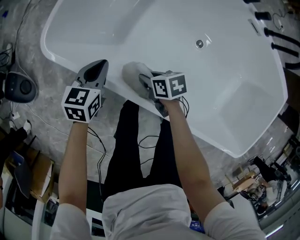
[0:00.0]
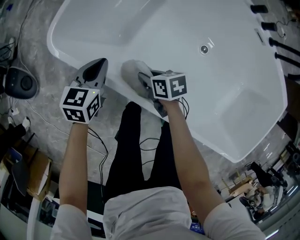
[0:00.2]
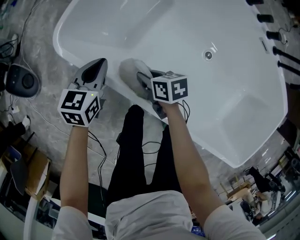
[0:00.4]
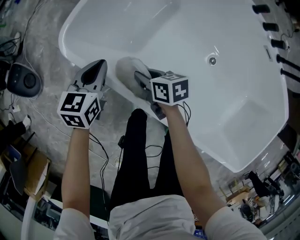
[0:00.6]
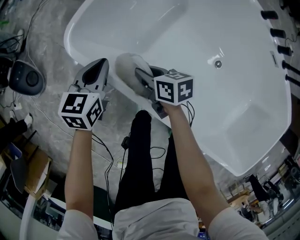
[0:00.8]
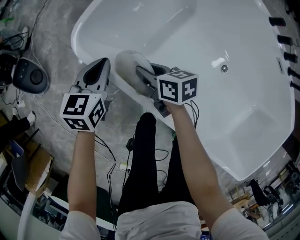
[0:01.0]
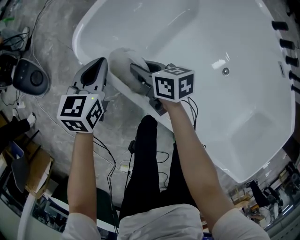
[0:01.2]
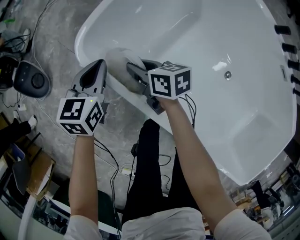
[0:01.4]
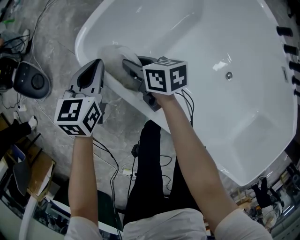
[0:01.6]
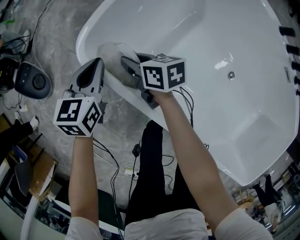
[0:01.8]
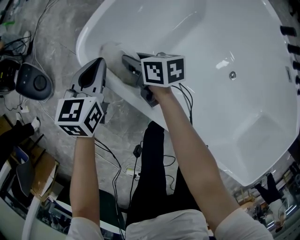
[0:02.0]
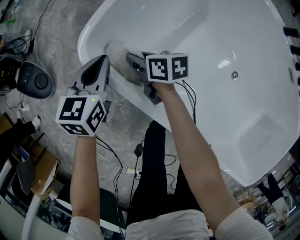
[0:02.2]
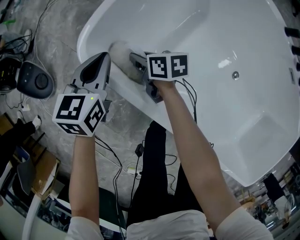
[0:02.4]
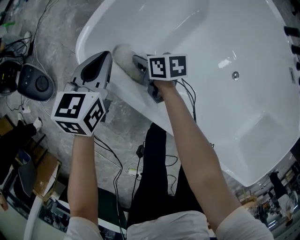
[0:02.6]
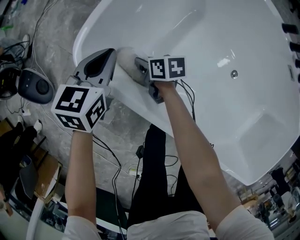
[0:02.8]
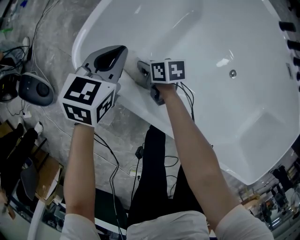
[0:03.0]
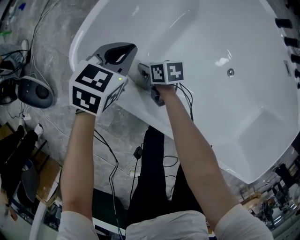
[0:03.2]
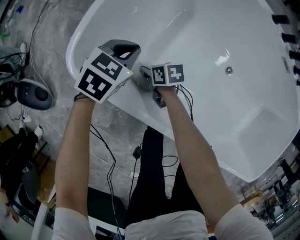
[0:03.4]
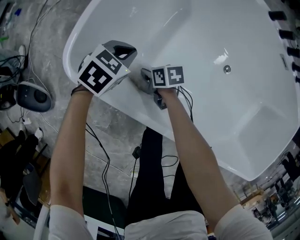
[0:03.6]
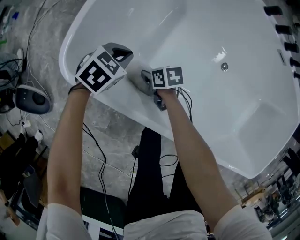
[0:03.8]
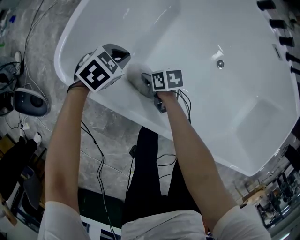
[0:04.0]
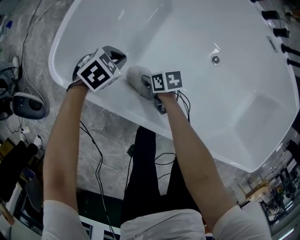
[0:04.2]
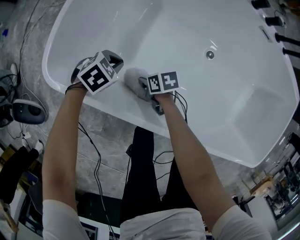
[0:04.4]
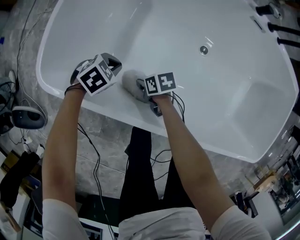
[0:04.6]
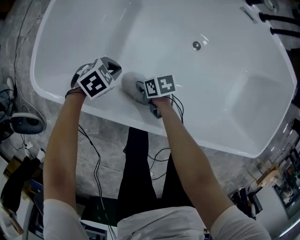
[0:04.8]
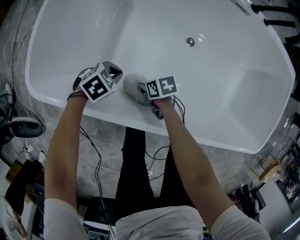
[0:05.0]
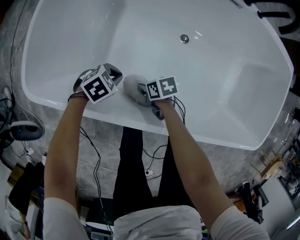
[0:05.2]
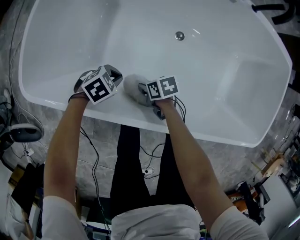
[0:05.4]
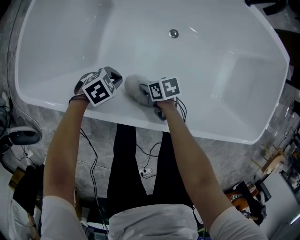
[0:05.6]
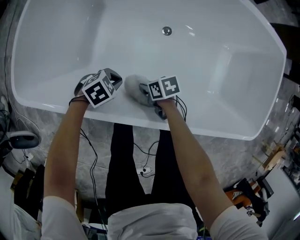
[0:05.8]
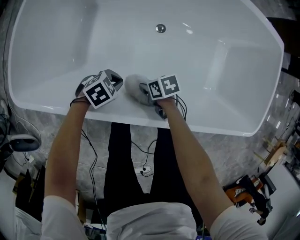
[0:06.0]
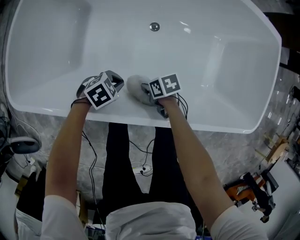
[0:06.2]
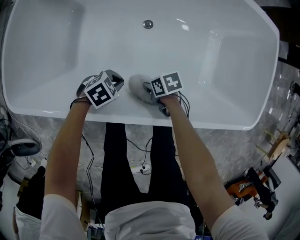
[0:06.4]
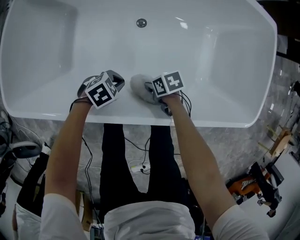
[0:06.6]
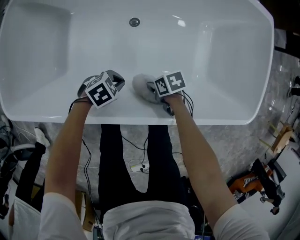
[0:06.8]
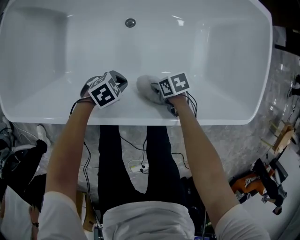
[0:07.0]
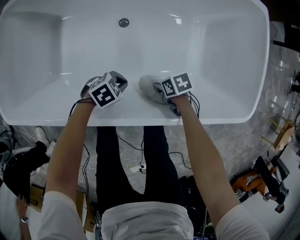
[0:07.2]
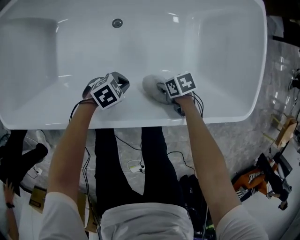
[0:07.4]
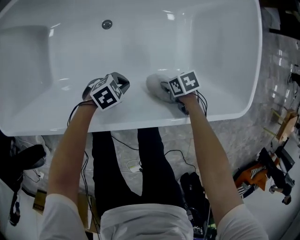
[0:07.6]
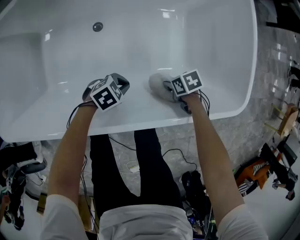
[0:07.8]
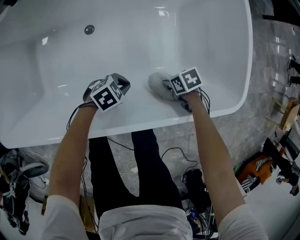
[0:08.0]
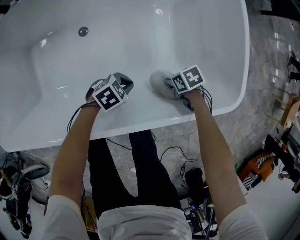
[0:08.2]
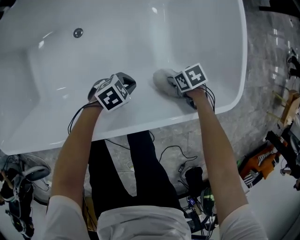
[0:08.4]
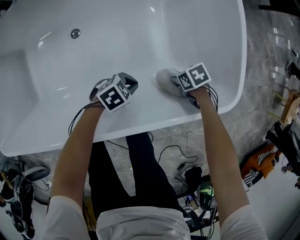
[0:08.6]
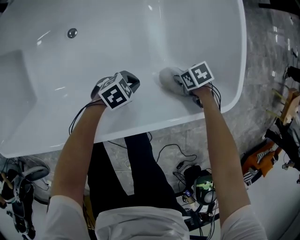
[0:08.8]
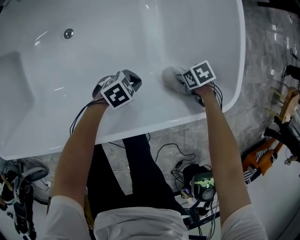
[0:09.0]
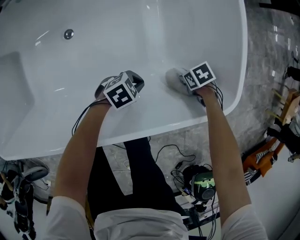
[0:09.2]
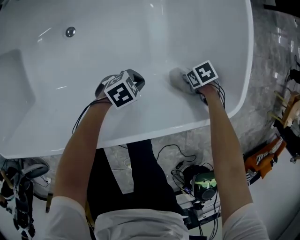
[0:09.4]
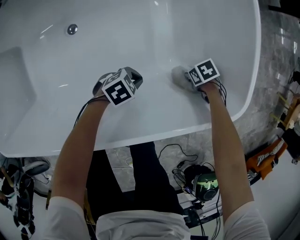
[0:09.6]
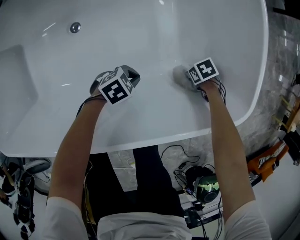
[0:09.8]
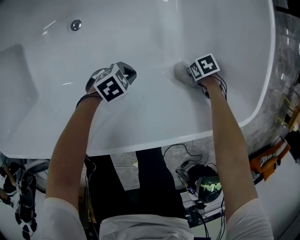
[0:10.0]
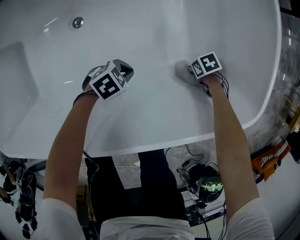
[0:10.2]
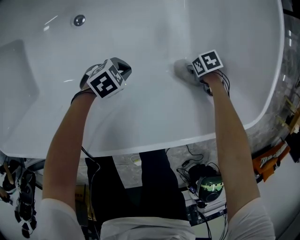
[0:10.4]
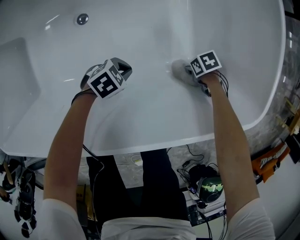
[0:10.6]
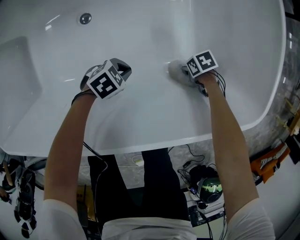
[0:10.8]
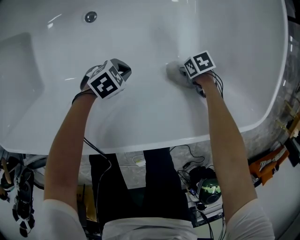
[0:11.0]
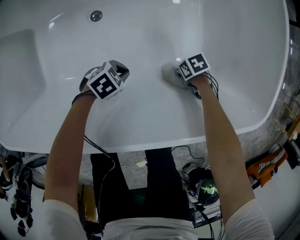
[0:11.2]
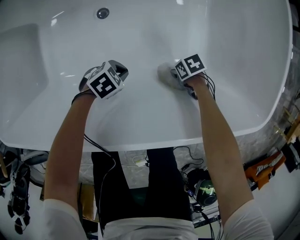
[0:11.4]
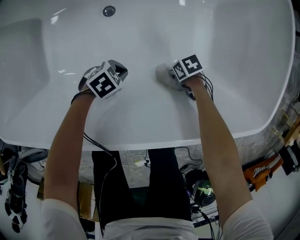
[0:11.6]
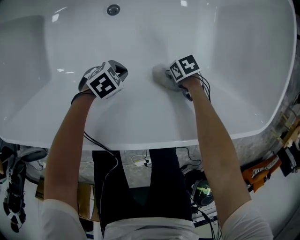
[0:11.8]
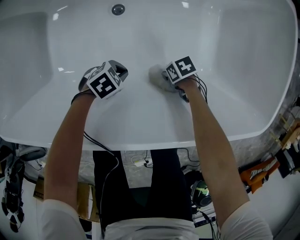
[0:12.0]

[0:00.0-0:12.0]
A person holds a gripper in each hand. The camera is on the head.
0.0 to 1.6 s: The left gripper changes place by approximately 20 cm, and turns by roughly 20 degrees.
1.6 to 3.0 s: The left gripper moves approximately 10 cm, and rotates some 20 degrees.
3.0 to 4.4 s: The left gripper ends up some 20 cm from where it was, and turns by approximately 50 degrees.
4.4 to 6.0 s: The left gripper ends up approximately 30 cm from where it was, and changes its angle by roughly 20 degrees.
6.0 to 7.6 s: The left gripper ends up roughly 30 cm from where it was.
7.6 to 9.0 s: The left gripper moves some 20 cm.
9.0 to 10.4 s: The left gripper shifts by some 15 cm.
10.4 to 12.0 s: The left gripper ends up some 15 cm from where it was.

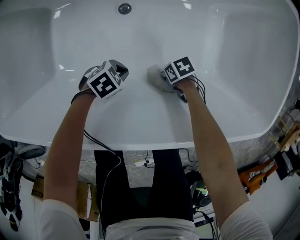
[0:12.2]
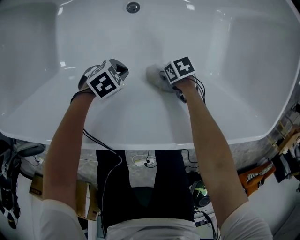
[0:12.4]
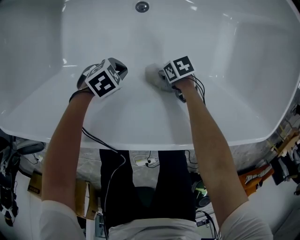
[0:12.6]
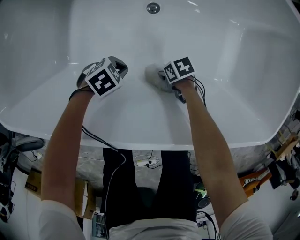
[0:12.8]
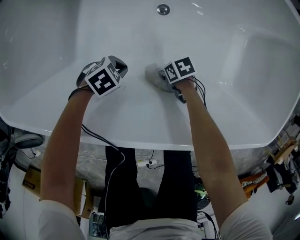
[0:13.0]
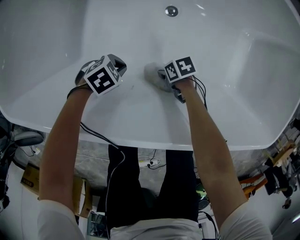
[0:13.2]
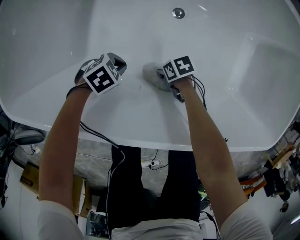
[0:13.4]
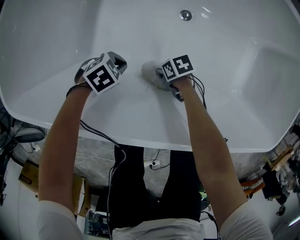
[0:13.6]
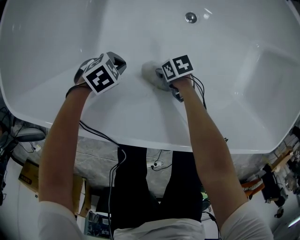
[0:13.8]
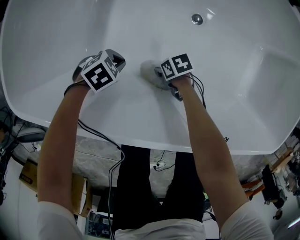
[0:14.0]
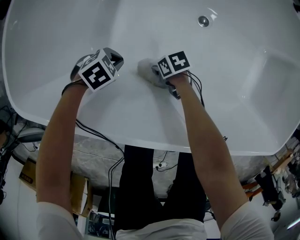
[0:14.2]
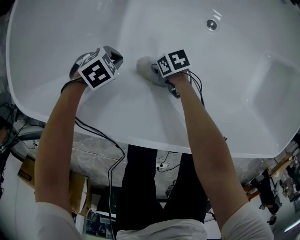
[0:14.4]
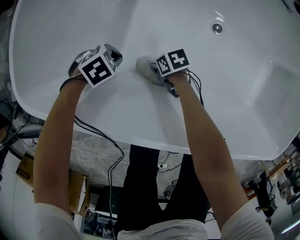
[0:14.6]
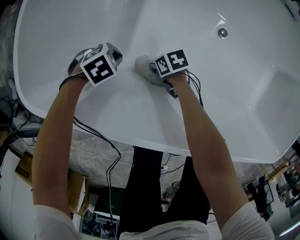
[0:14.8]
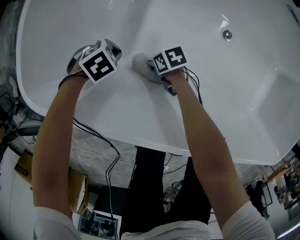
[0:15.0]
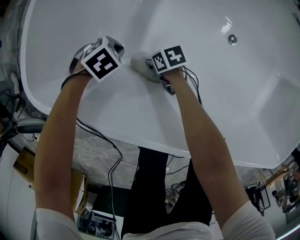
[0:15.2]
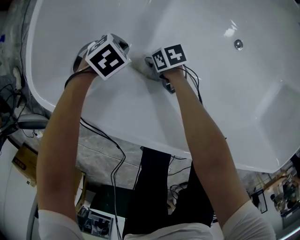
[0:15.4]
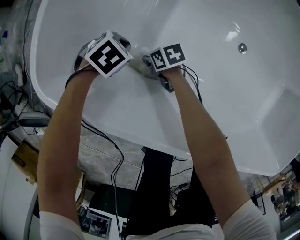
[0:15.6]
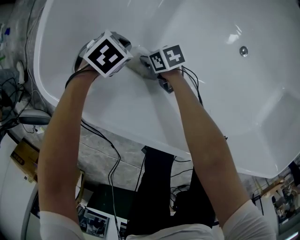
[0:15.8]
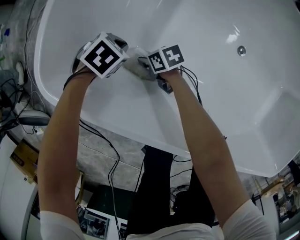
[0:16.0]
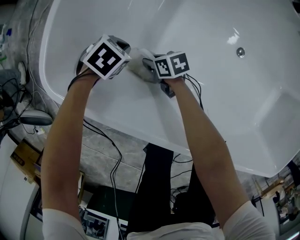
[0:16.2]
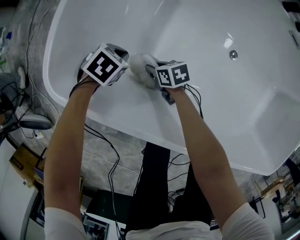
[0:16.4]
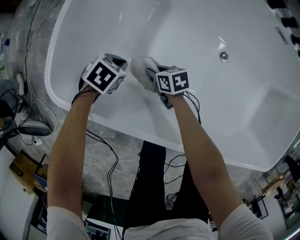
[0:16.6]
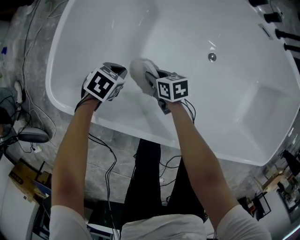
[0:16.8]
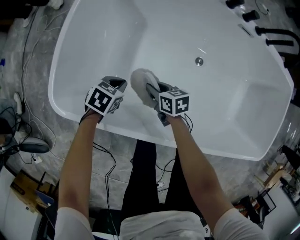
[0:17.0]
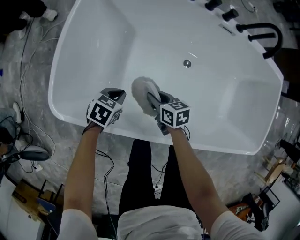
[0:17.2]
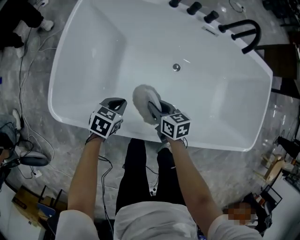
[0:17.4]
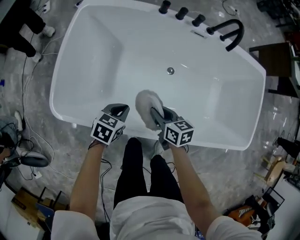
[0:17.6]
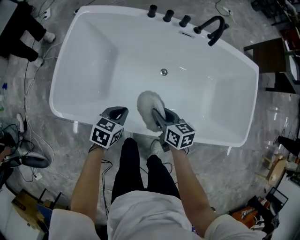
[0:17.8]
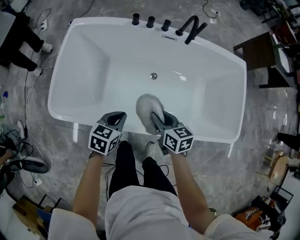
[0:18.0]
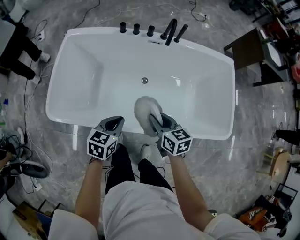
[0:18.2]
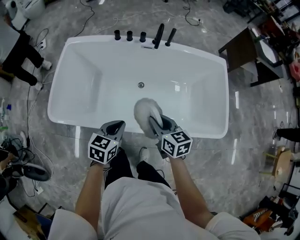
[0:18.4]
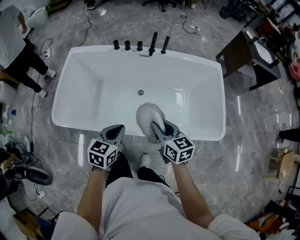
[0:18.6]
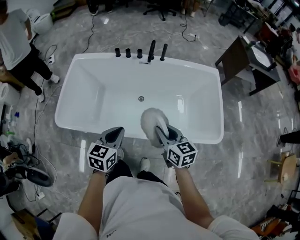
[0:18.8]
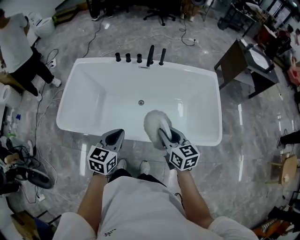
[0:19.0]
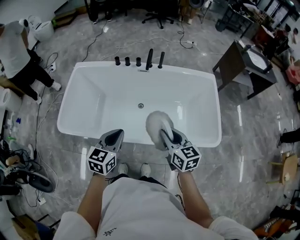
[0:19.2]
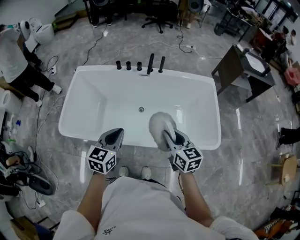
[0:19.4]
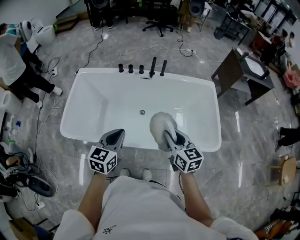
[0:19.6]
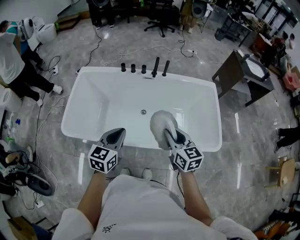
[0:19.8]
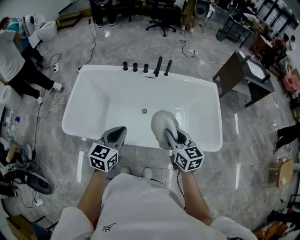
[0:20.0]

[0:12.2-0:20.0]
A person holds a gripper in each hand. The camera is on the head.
12.2 to 13.8 s: The left gripper ends up roughly 25 cm from where it was.
13.8 to 15.4 s: The left gripper shifts by some 25 cm.
15.4 to 16.8 s: The left gripper heads upward, covering some 10 cm, and changes its angle by some 20 degrees.
16.8 to 18.4 s: The left gripper travels upward by approximately 40 cm, and swivels roughly 30 degrees.
18.4 to 20.0 s: The left gripper travels upward by roughly 15 cm.

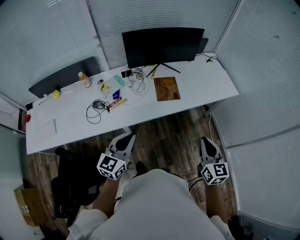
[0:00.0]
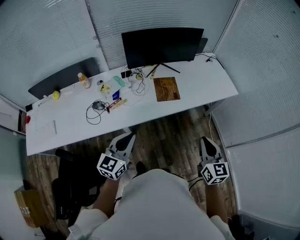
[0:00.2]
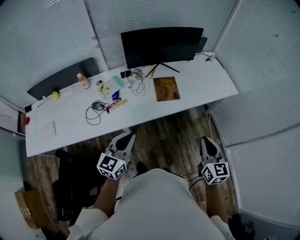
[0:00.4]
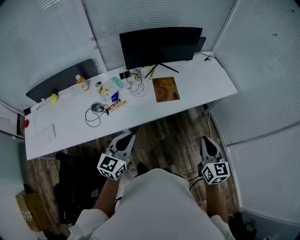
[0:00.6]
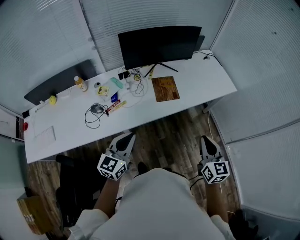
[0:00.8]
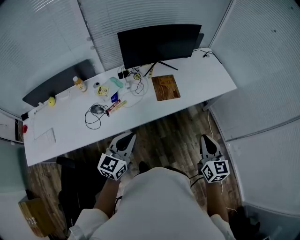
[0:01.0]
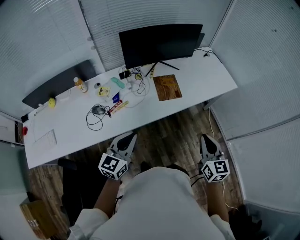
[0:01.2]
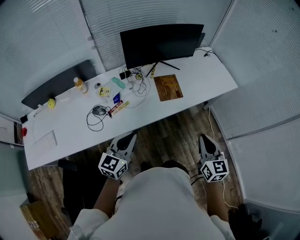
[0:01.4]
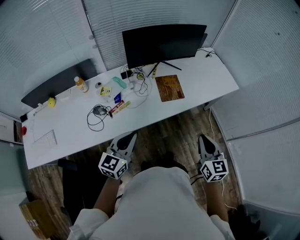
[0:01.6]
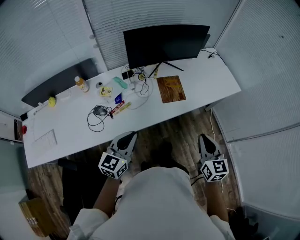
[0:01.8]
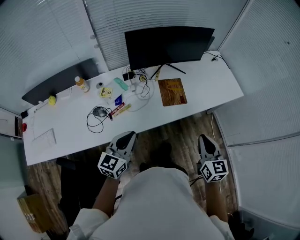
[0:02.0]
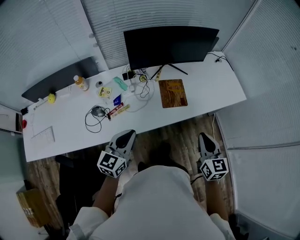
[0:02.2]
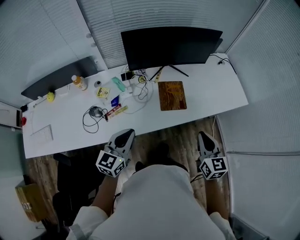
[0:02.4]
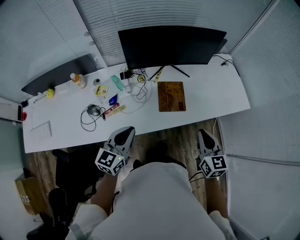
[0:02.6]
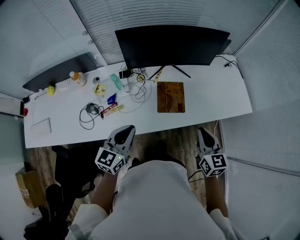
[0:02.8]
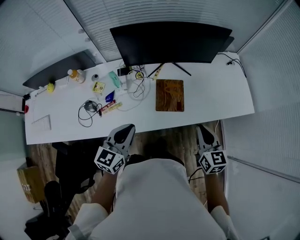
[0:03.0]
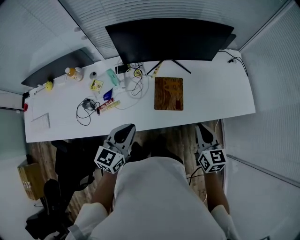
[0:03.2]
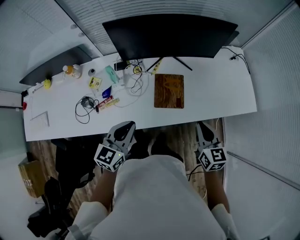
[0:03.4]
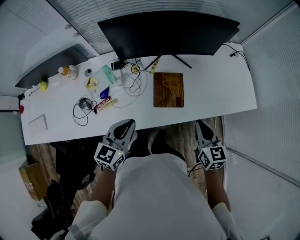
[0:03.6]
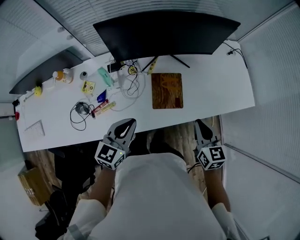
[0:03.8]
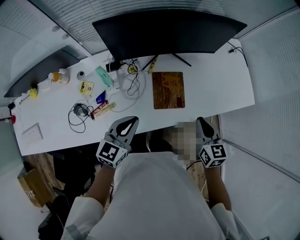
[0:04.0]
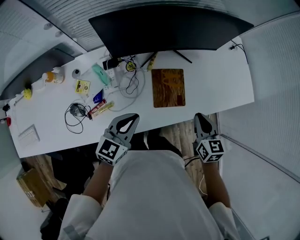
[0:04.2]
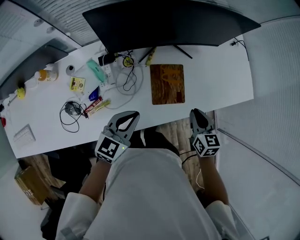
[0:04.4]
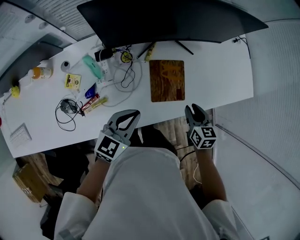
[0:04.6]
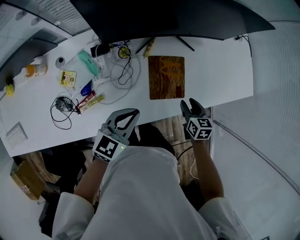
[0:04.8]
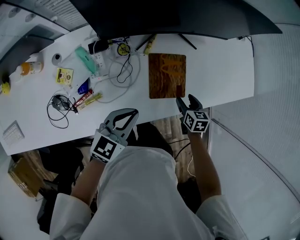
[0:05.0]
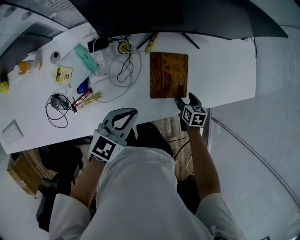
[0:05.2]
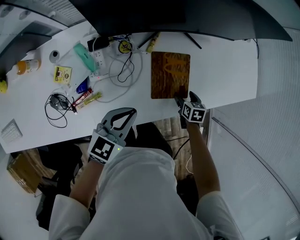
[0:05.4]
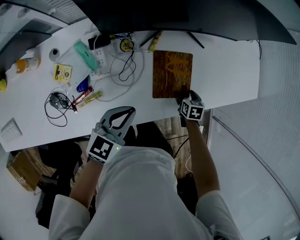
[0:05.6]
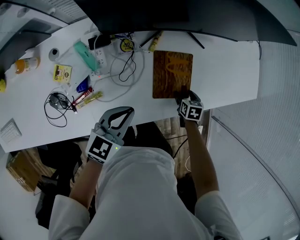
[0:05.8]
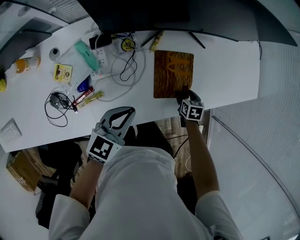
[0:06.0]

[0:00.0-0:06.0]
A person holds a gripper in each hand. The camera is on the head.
0.0 to 1.6 s: Both grippers travel together to the left, roughly 10 cm.
1.6 to 3.0 s: The right gripper is displaced forward by some 25 cm; the left gripper travels forward and to the right by approximately 20 cm.
3.0 to 4.4 s: The right gripper moves downward, forward and to the left, roughly 15 cm; the left gripper goes approximately 15 cm forward and downward.
4.4 to 6.0 s: The right gripper shifts some 25 cm downward, tilts its fingers some 30 degrees downward, and opens up; the left gripper is displaced downward by about 5 cm.
